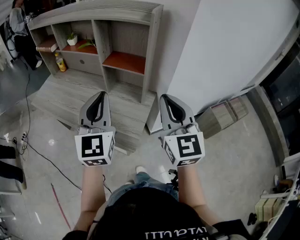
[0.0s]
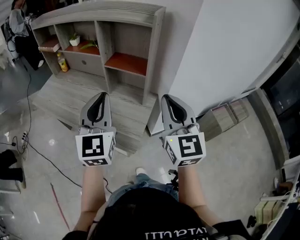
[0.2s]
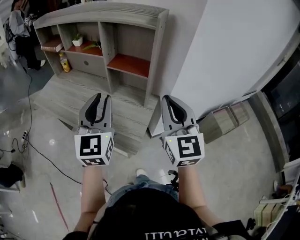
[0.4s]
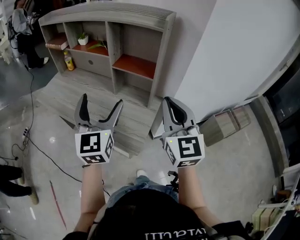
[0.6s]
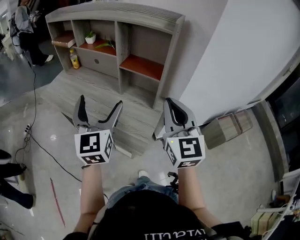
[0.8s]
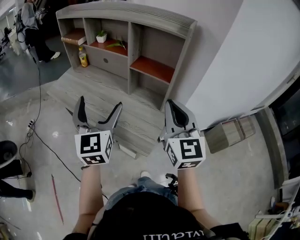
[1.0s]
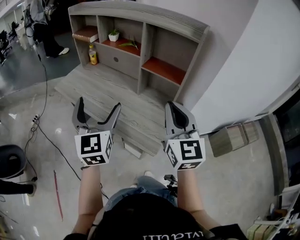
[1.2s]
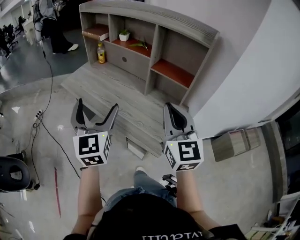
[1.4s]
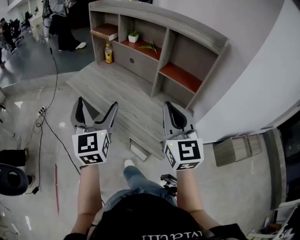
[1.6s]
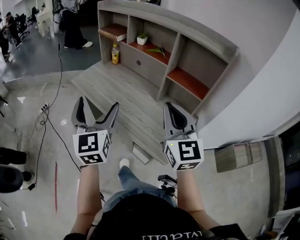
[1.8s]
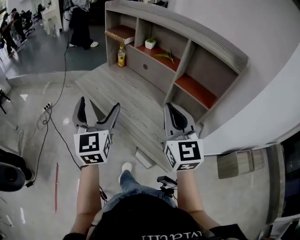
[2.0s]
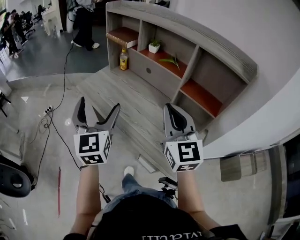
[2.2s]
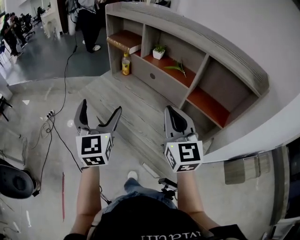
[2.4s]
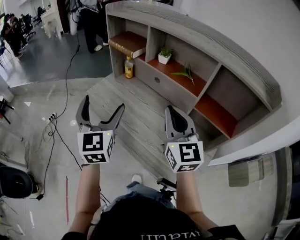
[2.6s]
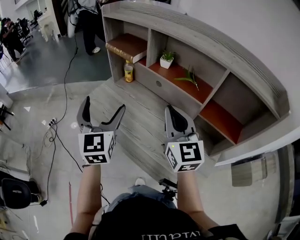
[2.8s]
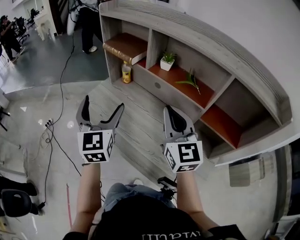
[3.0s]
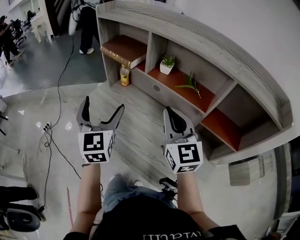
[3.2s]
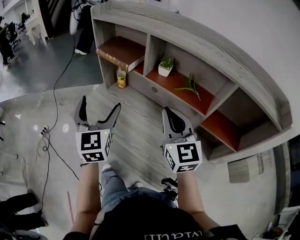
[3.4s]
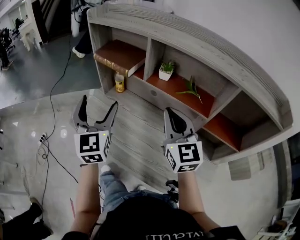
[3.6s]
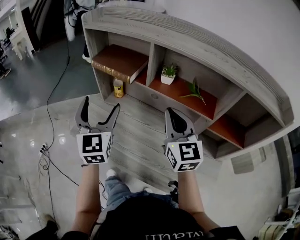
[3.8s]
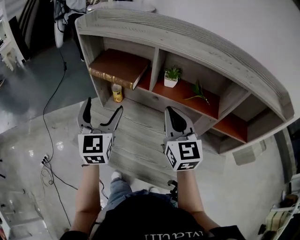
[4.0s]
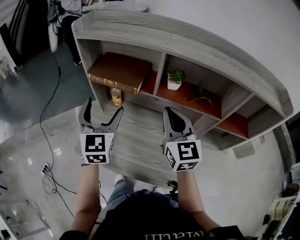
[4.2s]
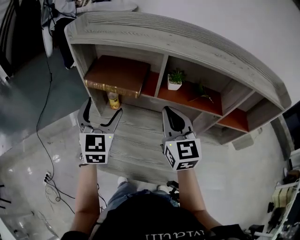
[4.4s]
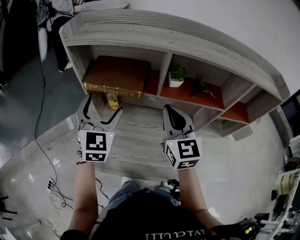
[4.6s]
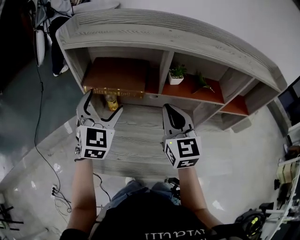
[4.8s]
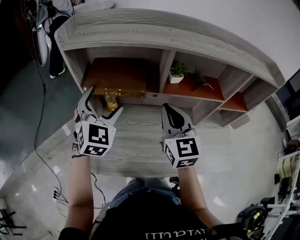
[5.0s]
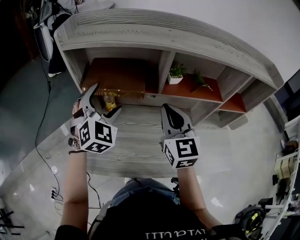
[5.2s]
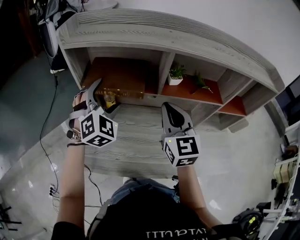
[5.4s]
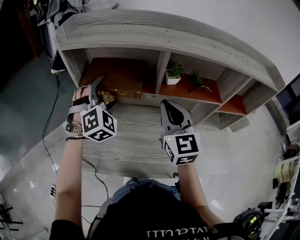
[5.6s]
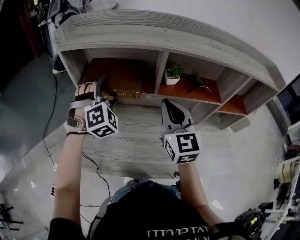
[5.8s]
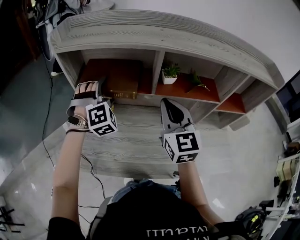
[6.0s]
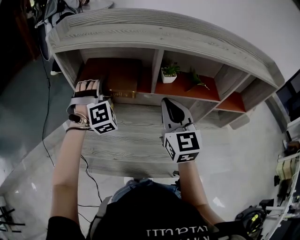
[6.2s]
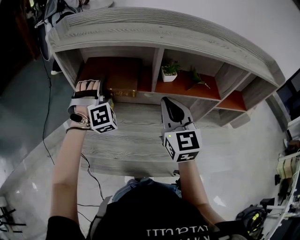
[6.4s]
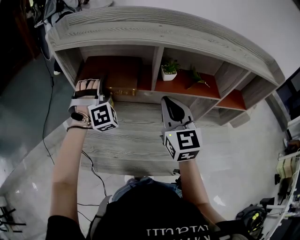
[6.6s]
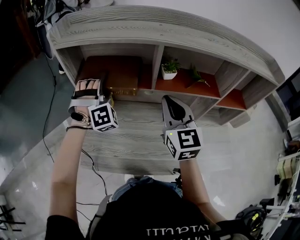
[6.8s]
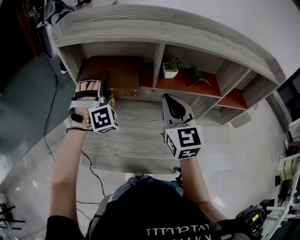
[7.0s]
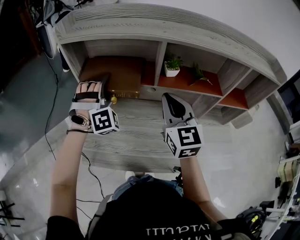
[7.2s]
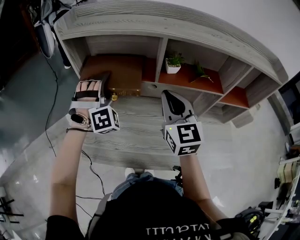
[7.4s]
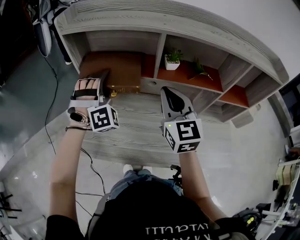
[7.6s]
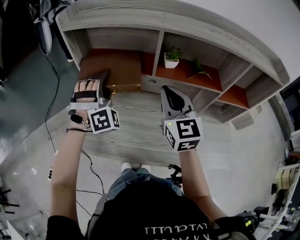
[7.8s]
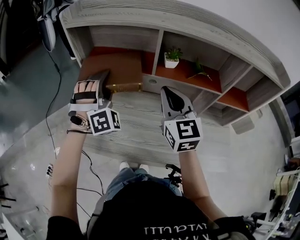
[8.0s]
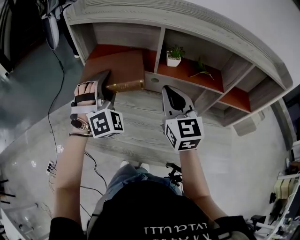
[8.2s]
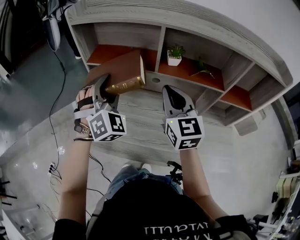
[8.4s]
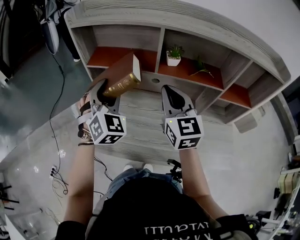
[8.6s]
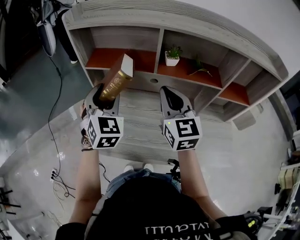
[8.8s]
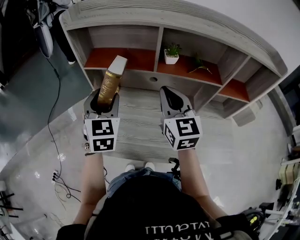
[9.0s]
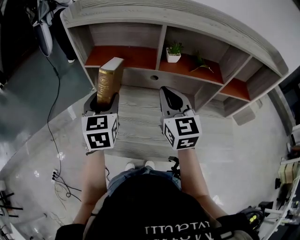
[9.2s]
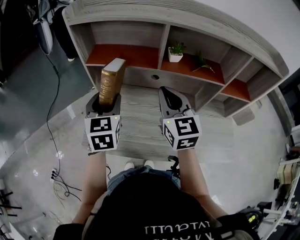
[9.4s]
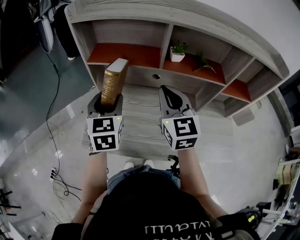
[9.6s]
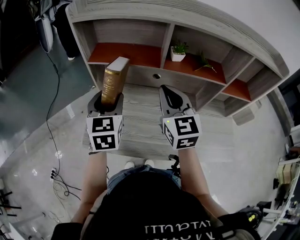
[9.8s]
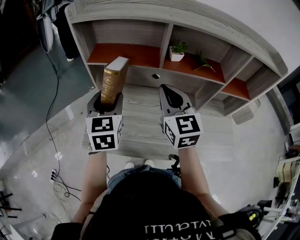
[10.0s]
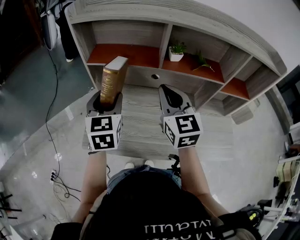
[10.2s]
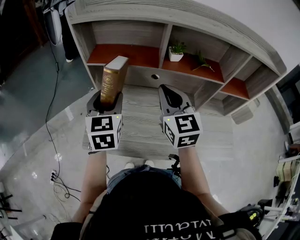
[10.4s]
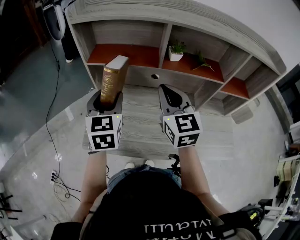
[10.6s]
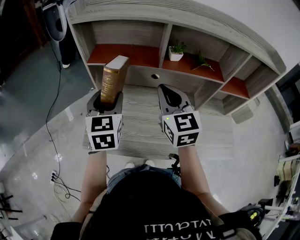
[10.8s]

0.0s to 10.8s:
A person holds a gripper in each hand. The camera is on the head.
0.0s to 1.6s: Both grippers travel together to the left, roughly 25 cm. The left gripper changes its angle by roughly 20 degrees, and opens up.
1.6s to 3.0s: Both grippers travel together forward, roughly 35 cm.
3.0s to 4.6s: The right gripper ends up about 20 cm from where it was, and changes its angle by some 30 degrees; the left gripper moves roughly 25 cm, and turns by some 40 degrees.
4.6s to 6.2s: The left gripper is displaced forward and downward by roughly 10 cm, and rolls clockwise, seen from behind, by approximately 60 degrees.
6.2s to 7.8s: The left gripper goes approximately 10 cm backward, and closes.
7.8s to 9.2s: The left gripper moves backward, roughly 5 cm, and rolls counterclockwise, seen from behind, by roughly 80 degrees.
9.2s to 10.8s: The grippers stay close to where they were, moving slightly.

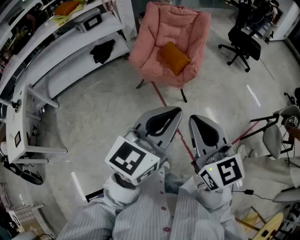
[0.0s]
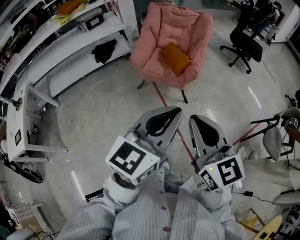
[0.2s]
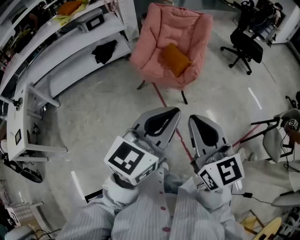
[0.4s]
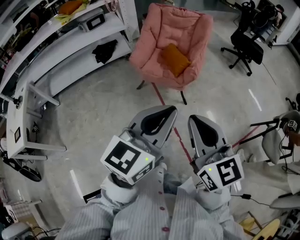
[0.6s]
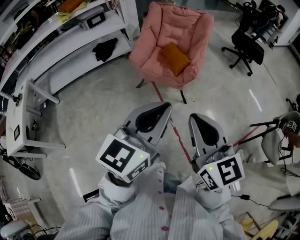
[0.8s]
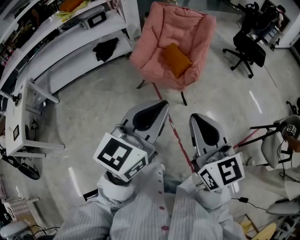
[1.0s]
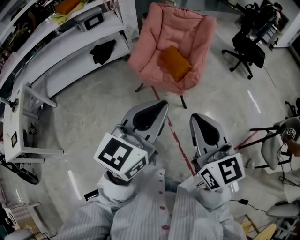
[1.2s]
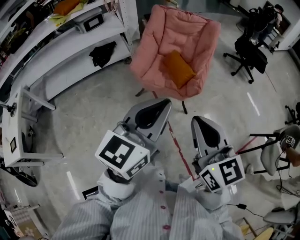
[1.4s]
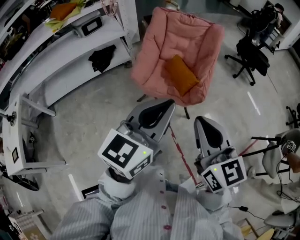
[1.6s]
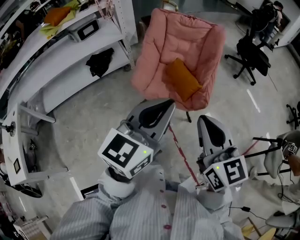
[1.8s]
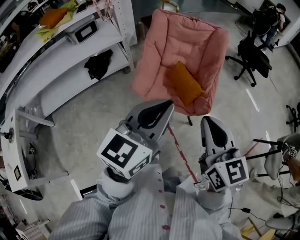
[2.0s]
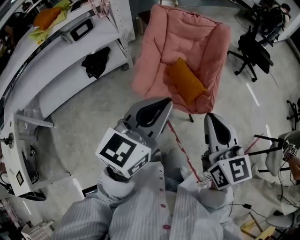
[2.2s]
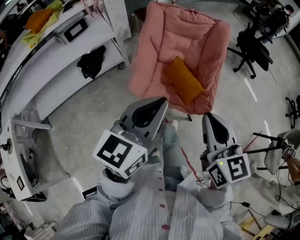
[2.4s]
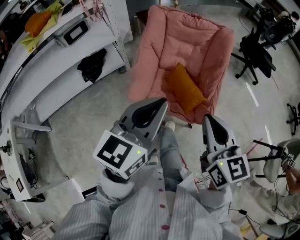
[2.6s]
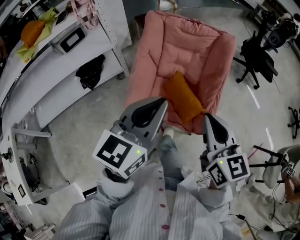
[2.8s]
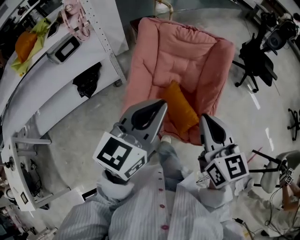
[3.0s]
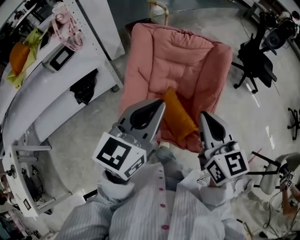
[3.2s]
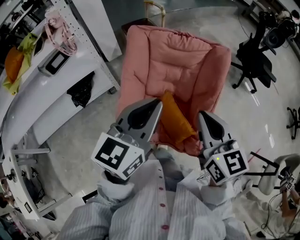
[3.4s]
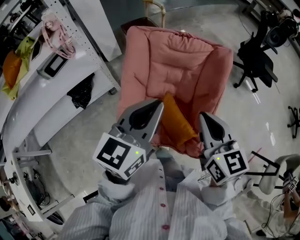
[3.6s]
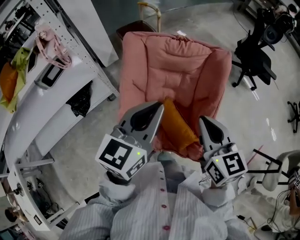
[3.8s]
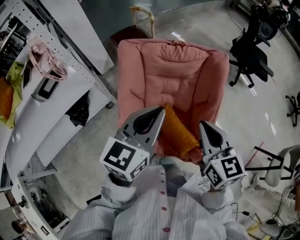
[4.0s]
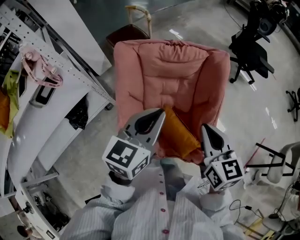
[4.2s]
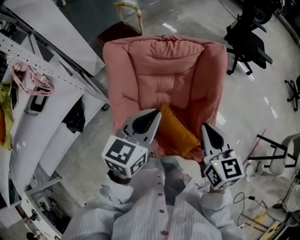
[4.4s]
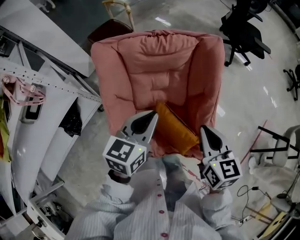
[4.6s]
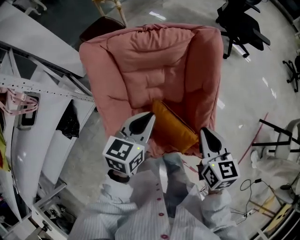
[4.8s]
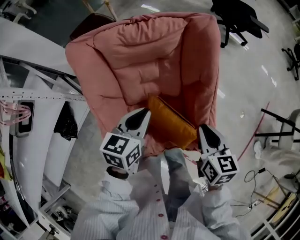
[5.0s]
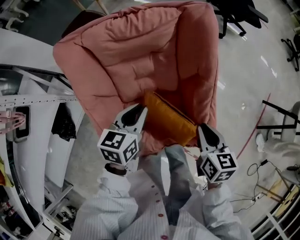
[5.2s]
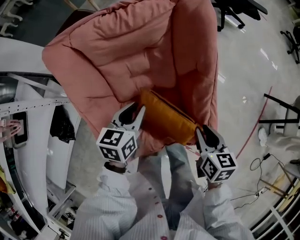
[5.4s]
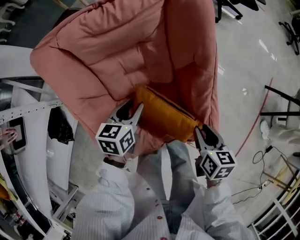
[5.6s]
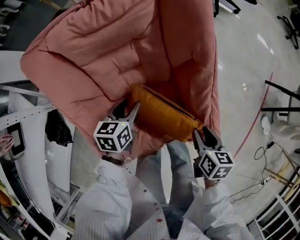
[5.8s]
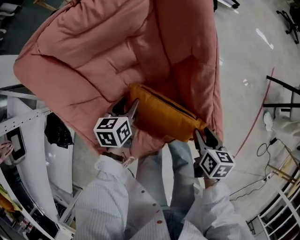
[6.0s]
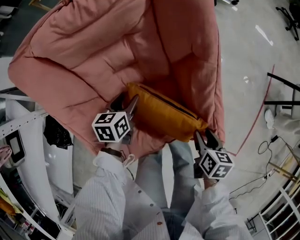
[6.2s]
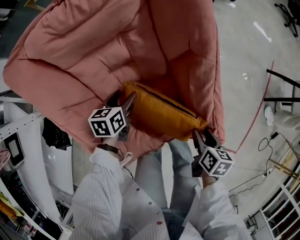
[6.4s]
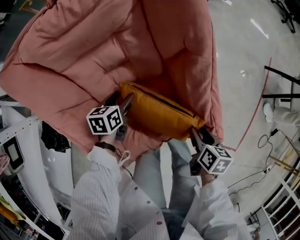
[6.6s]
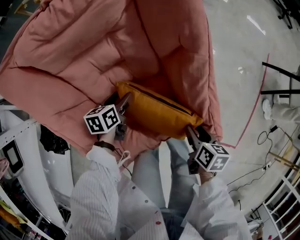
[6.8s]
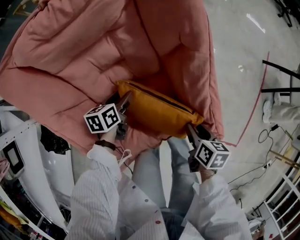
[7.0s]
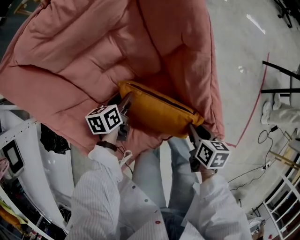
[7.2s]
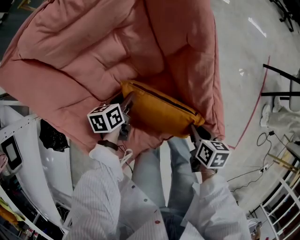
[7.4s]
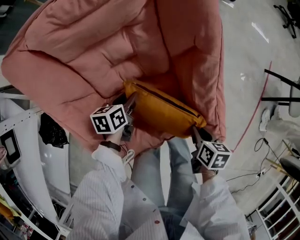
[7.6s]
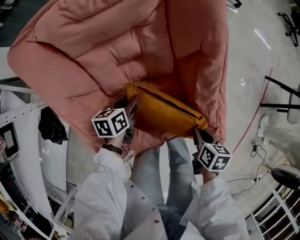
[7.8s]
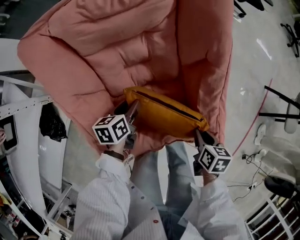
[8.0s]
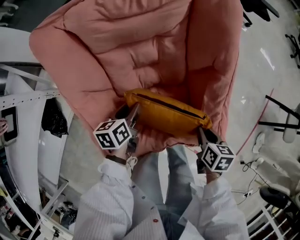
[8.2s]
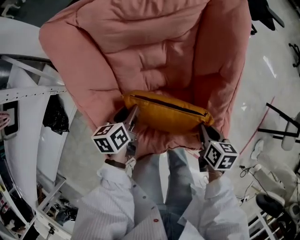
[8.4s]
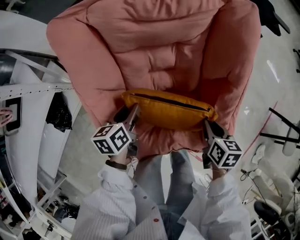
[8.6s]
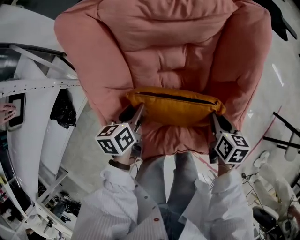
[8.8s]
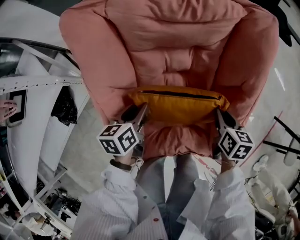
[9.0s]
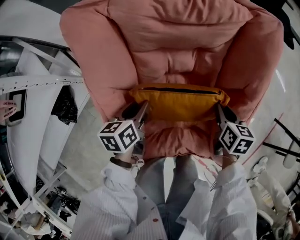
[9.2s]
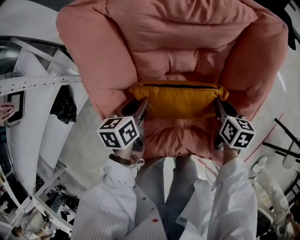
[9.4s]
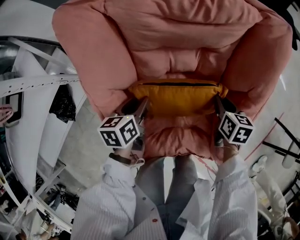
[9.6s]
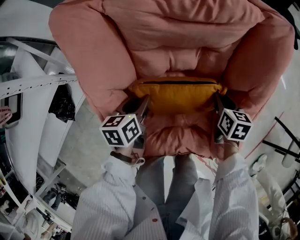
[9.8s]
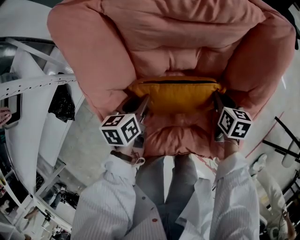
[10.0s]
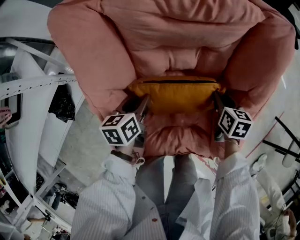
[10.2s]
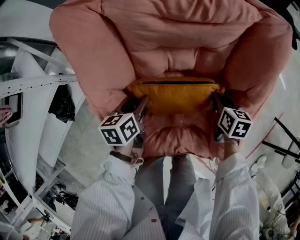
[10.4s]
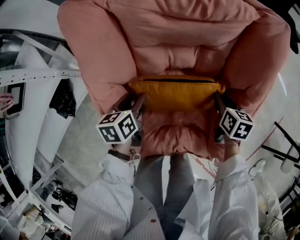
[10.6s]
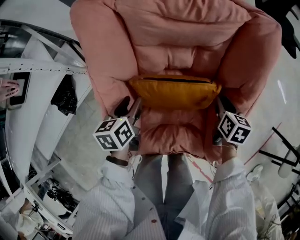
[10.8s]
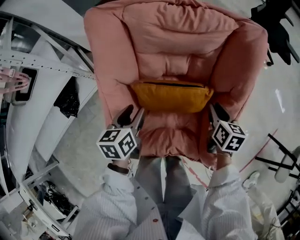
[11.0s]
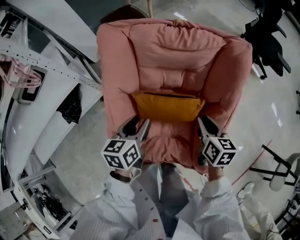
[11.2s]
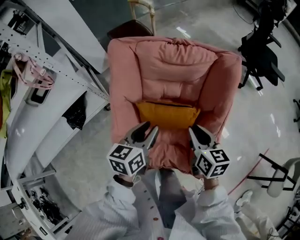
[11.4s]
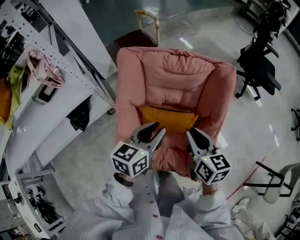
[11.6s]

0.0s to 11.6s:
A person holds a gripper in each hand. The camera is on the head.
0.0s to 1.4s: The two grippers go approximately 15 cm forward.
1.4s to 2.8s: Both grippers travel together forward, some 35 cm.
2.8s to 4.4s: The grippers both shift forward by roughly 30 cm. The left gripper turns by about 20 degrees; the right gripper changes its angle by about 20 degrees.
4.4s to 5.8s: The right gripper travels downward and to the right by roughly 35 cm, swivels some 40 degrees, and opens up. Meanwhile the left gripper goes about 35 cm downward, swivels about 30 degrees, and opens.
5.8s to 7.2s: Both grippers travel together downward, approximately 10 cm.
7.2s to 8.8s: The left gripper heads to the left and upward, covering some 15 cm, and changes its angle by roughly 30 degrees. Meanwhile the right gripper shifts about 20 cm forward, to the left and upward, and swivels roughly 30 degrees.
8.8s to 10.2s: The left gripper moves roughly 5 cm, while the right gripper moves forward and downward, roughly 10 cm.
10.2s to 11.6s: The two grippers go approximately 30 cm upward. The right gripper swivels about 40 degrees, while the left gripper changes its angle by approximately 30 degrees.

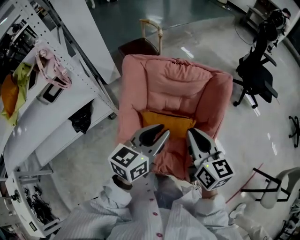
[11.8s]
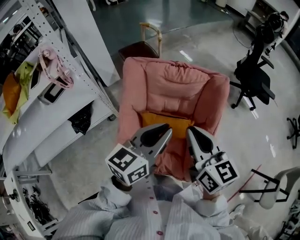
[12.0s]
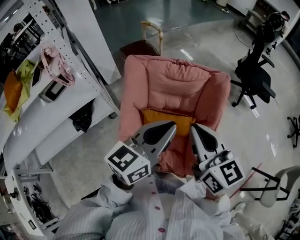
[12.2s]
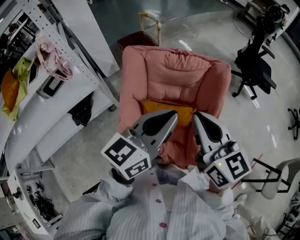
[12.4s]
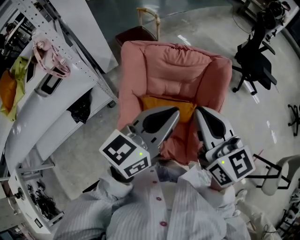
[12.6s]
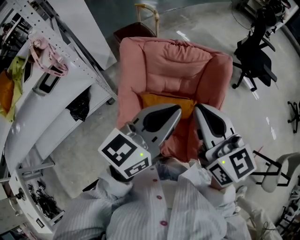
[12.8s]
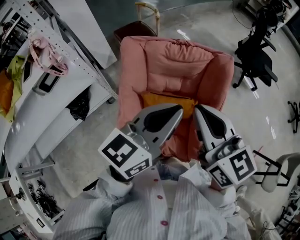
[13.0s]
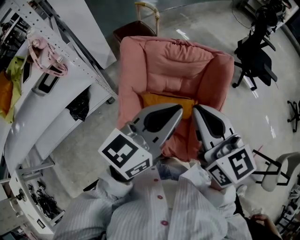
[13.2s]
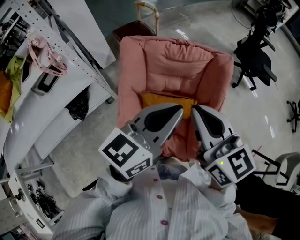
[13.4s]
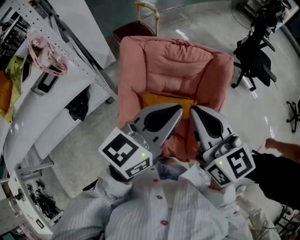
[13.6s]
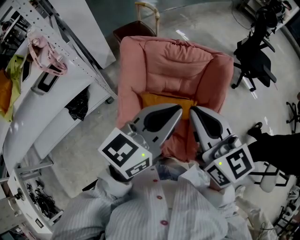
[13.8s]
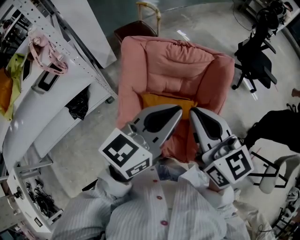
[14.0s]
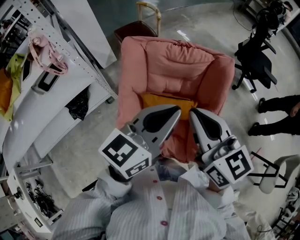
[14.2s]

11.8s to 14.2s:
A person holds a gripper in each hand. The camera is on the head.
11.8s to 13.0s: Both grippers move upward, about 10 cm.
13.0s to 14.2s: The grippers move only a little.
